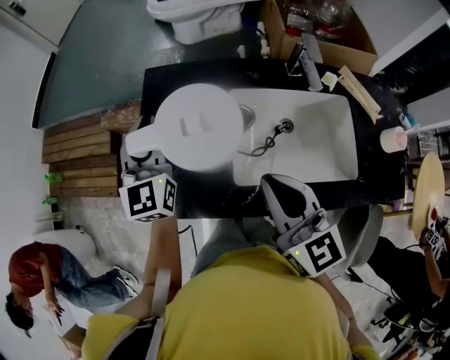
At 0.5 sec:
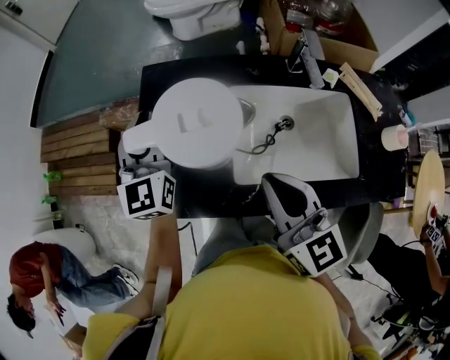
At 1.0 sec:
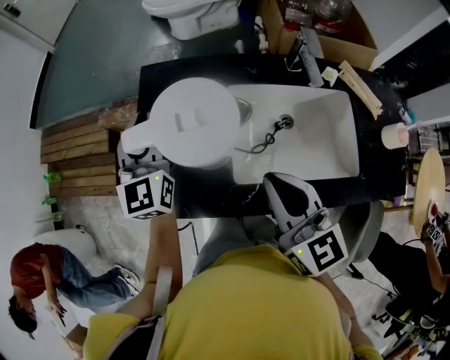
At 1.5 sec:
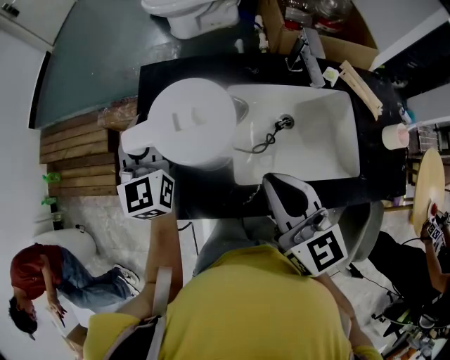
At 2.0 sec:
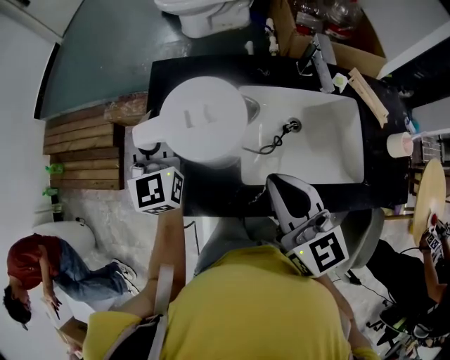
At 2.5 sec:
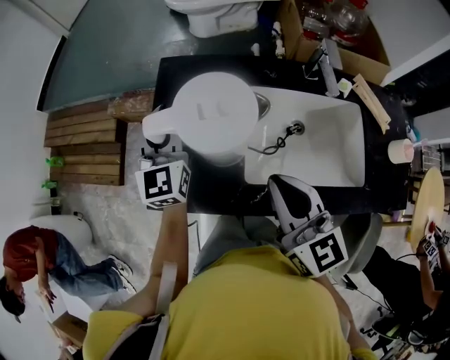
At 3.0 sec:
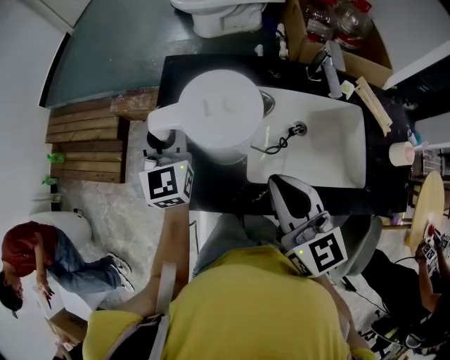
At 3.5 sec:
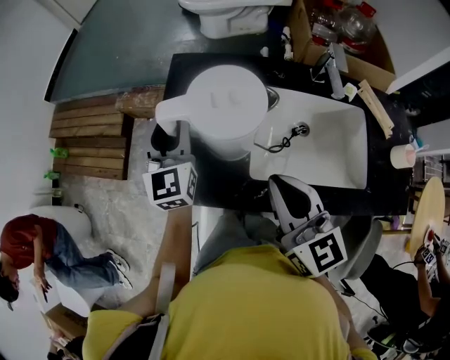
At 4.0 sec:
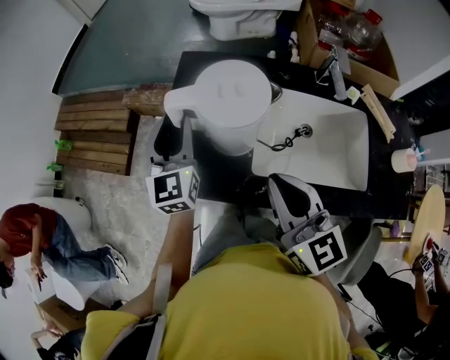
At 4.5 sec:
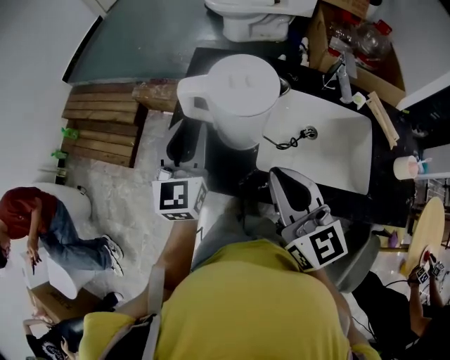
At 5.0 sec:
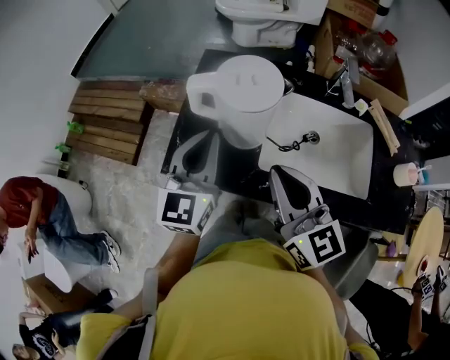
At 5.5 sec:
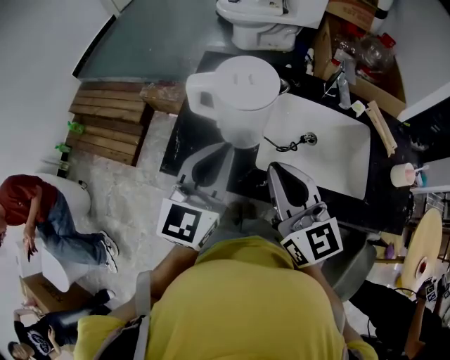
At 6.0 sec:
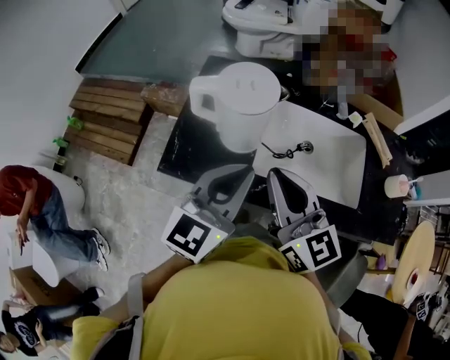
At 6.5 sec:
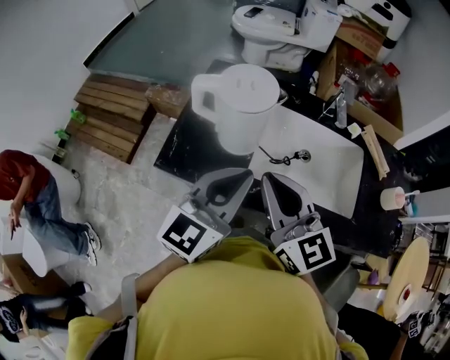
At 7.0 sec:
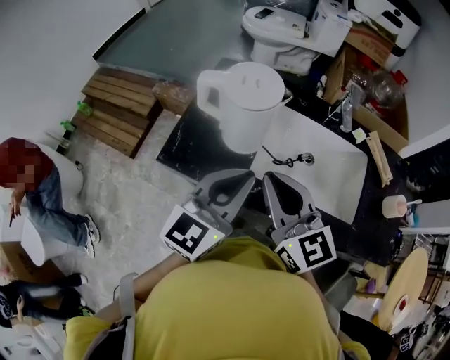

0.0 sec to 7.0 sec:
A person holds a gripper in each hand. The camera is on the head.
0.0 sec to 2.0 sec: The grippers make only small movements.
2.0 sec to 3.5 sec: The left gripper opens.
3.5 sec to 5.0 sec: The left gripper travels backward by roughly 15 cm, and closes.
5.0 sec to 7.0 sec: The left gripper moves to the right and backward, some 15 cm.

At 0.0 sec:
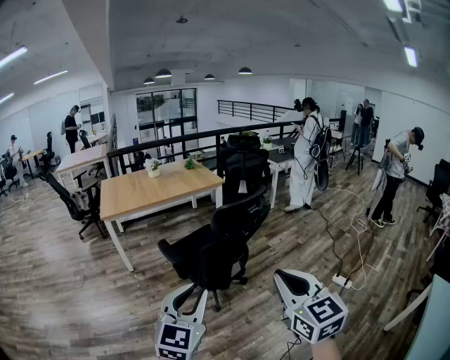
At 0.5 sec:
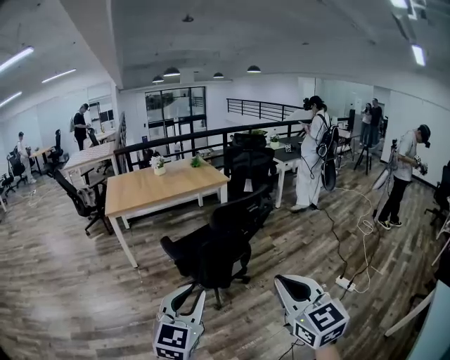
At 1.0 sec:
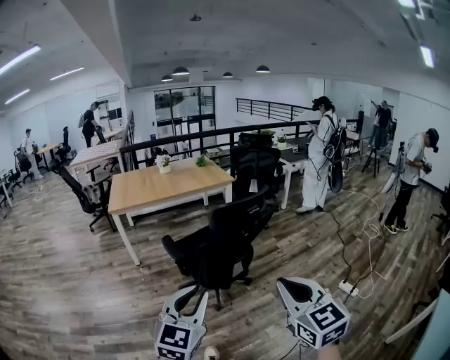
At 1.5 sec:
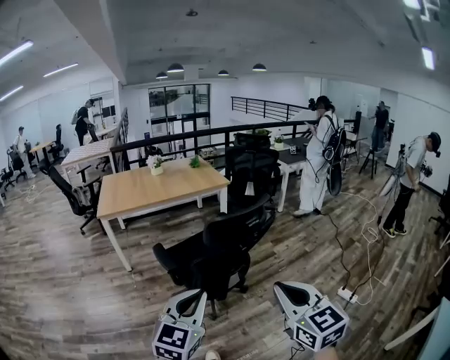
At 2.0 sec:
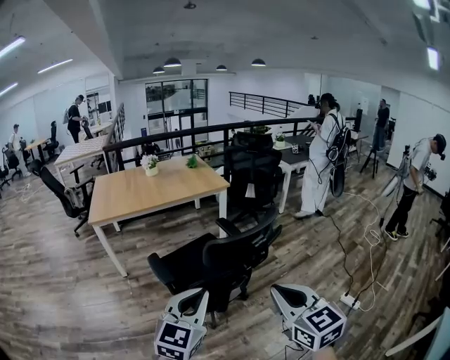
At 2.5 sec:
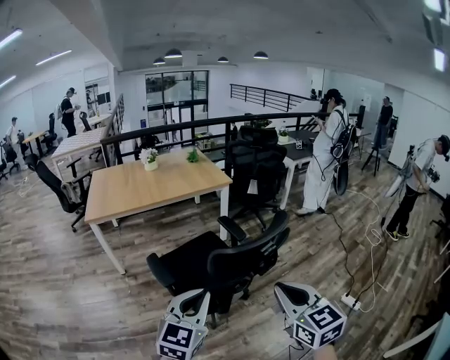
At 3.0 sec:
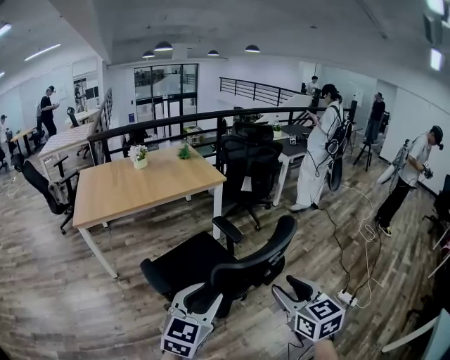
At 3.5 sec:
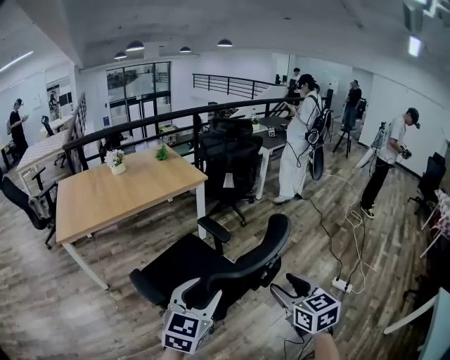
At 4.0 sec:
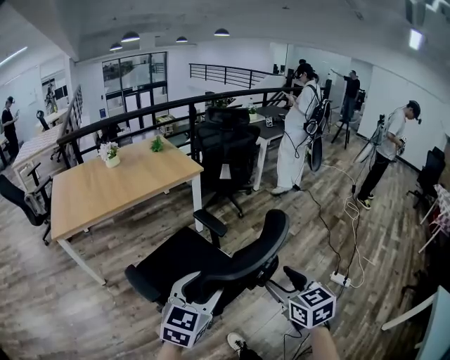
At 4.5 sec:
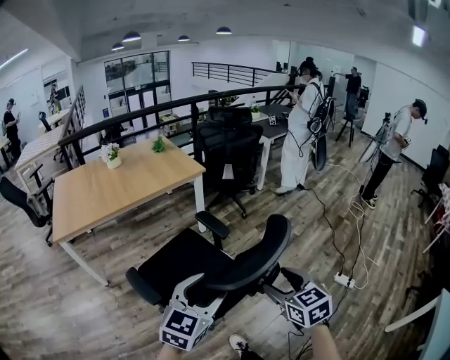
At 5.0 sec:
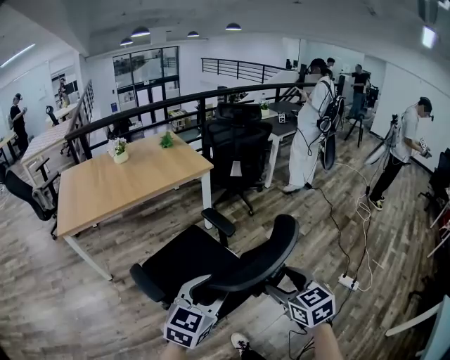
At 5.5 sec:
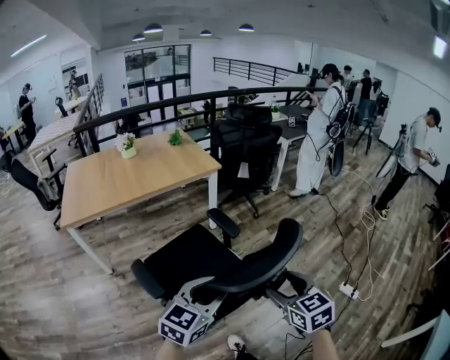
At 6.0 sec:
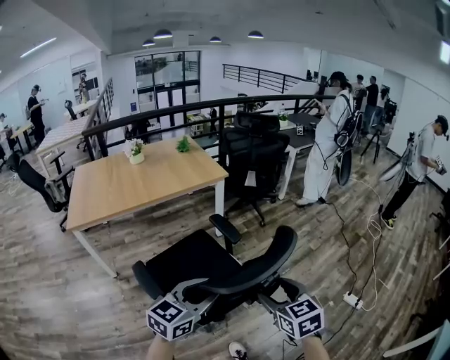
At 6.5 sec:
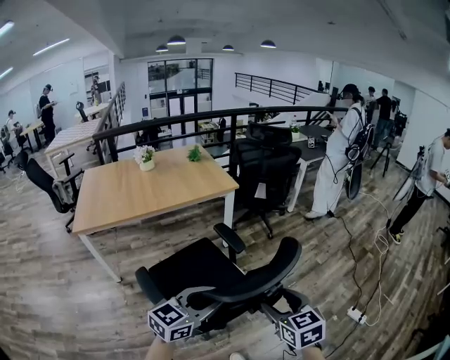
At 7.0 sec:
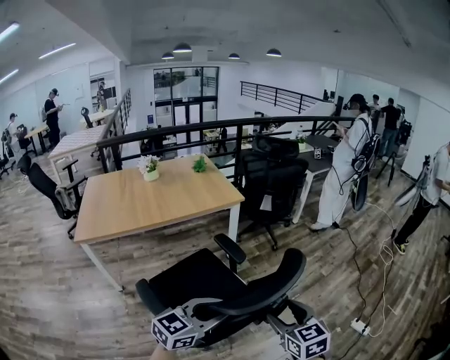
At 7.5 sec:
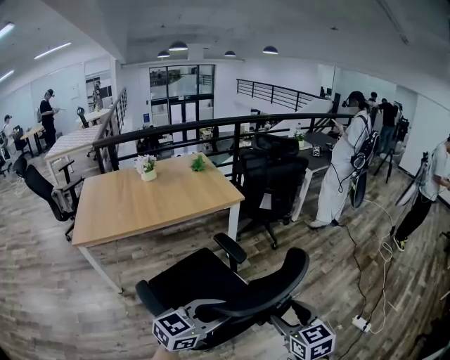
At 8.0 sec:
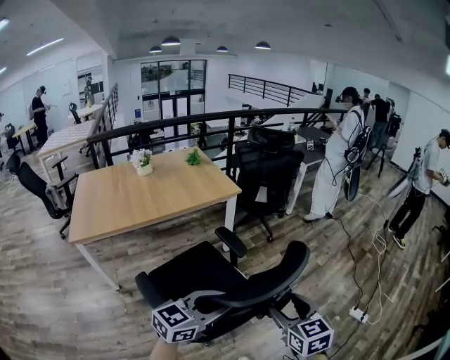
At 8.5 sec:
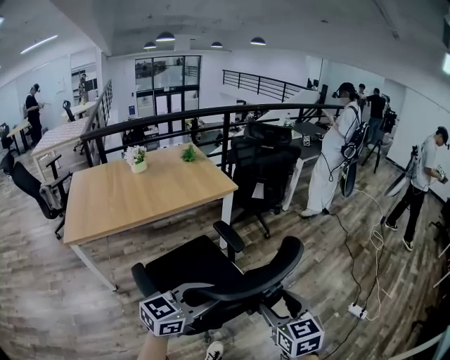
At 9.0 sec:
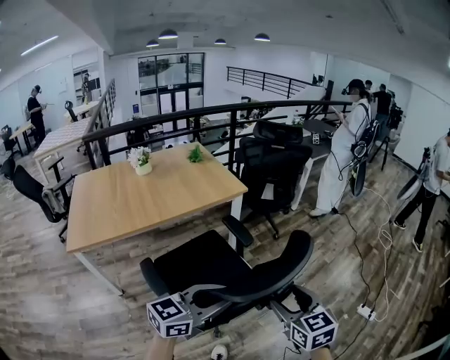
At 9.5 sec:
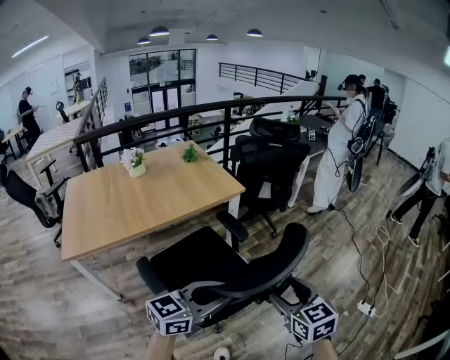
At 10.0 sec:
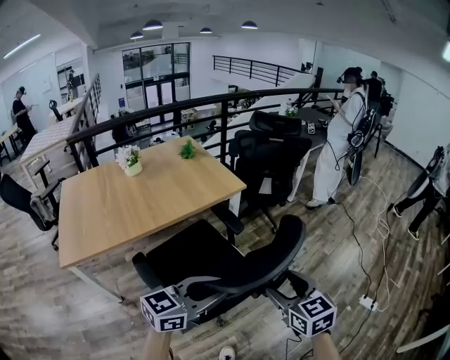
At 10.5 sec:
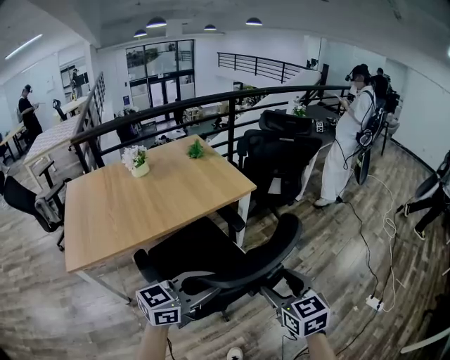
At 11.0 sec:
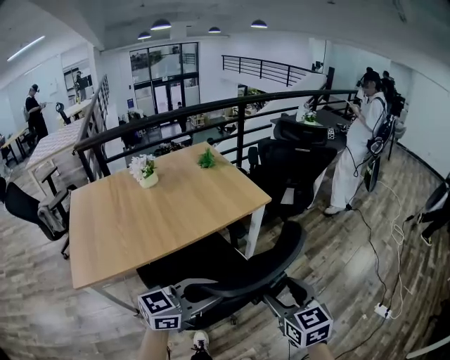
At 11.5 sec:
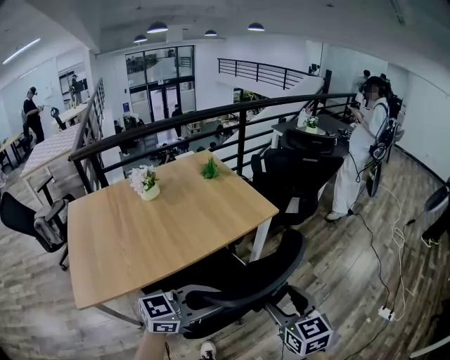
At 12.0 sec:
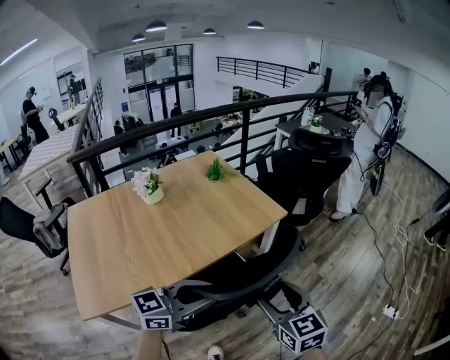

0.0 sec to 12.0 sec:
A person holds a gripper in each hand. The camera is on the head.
0.0 sec to 2.0 sec: The two grippers go about 20 cm forward.
2.0 sec to 4.0 sec: The left gripper goes about 20 cm forward, and opens its fingers. The right gripper shifts about 20 cm forward and downward, changes its angle by about 20 degrees, and opens.
4.0 sec to 6.0 sec: The right gripper is displaced forward by approximately 5 cm.
6.0 sec to 8.0 sec: The right gripper changes place by approximately 5 cm; the left gripper shifts by some 5 cm.
8.0 sec to 10.0 sec: Both grippers travel together to the left and forward, about 20 cm.
10.0 sec to 12.0 sec: The two grippers go approximately 25 cm to the left.

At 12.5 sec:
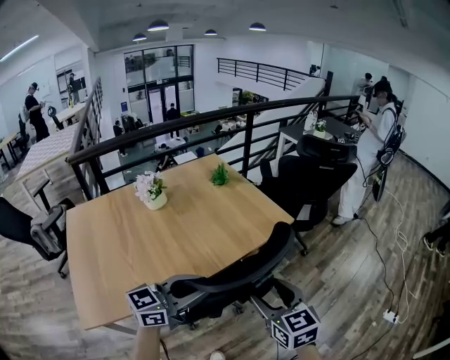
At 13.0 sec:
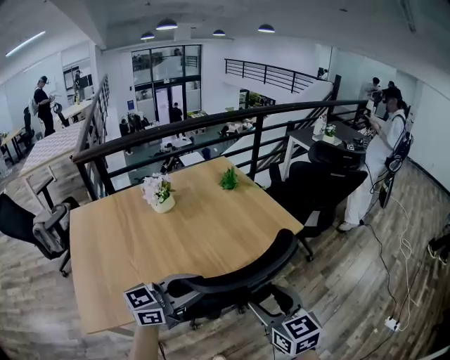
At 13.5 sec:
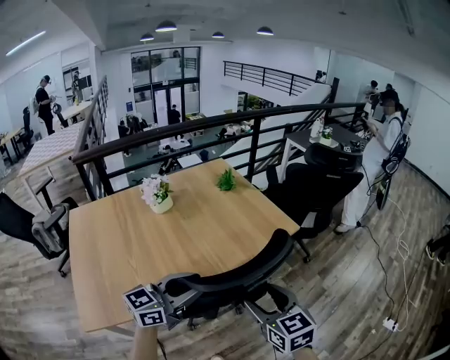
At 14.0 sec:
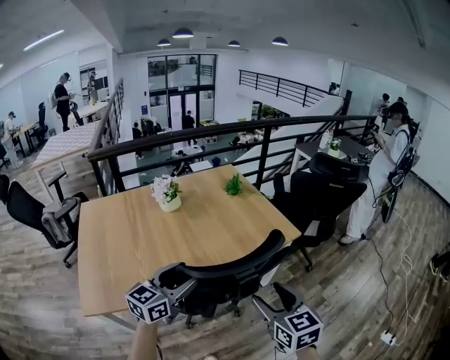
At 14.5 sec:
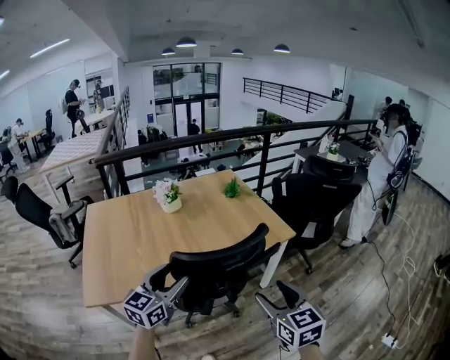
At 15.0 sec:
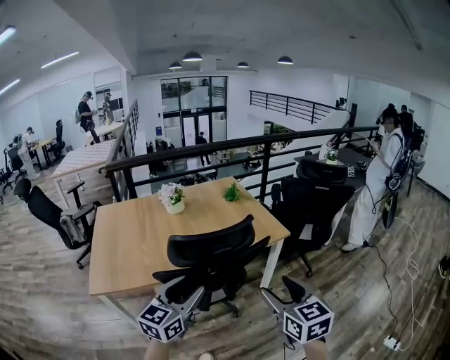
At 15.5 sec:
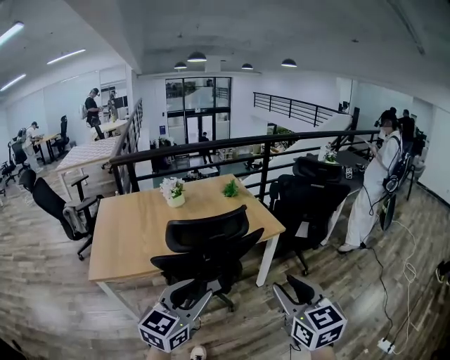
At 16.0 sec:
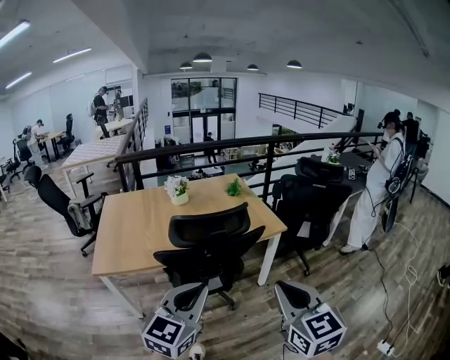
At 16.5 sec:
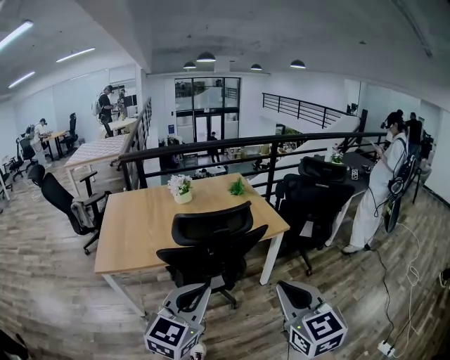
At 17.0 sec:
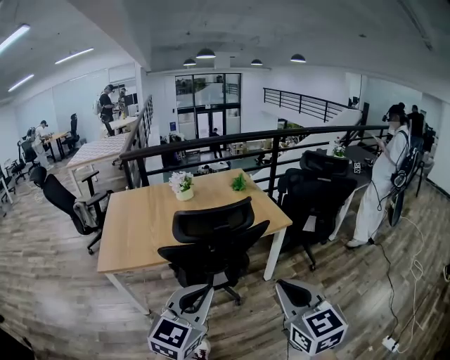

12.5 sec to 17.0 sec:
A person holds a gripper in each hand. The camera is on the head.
12.5 sec to 14.5 sec: The right gripper is displaced to the right by roughly 5 cm, while the left gripper shifts about 5 cm to the left, turns by some 40 degrees, and opens its fingers.
14.5 sec to 17.0 sec: The left gripper is displaced backward and to the right by about 30 cm, and closes its fingers. Meanwhile the right gripper goes some 20 cm backward, upward and to the right, and closes up.

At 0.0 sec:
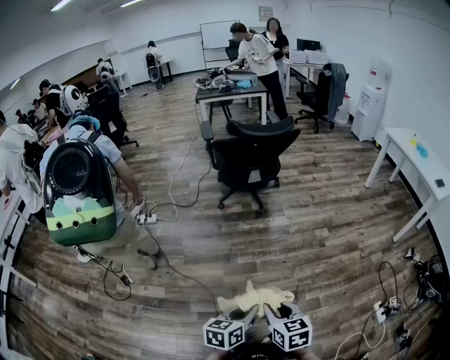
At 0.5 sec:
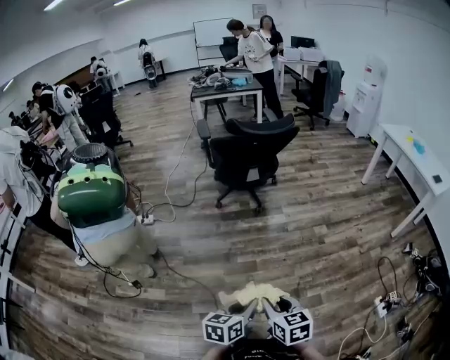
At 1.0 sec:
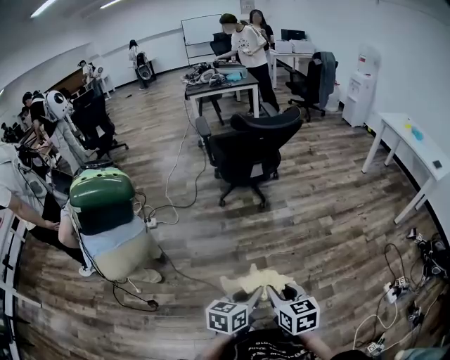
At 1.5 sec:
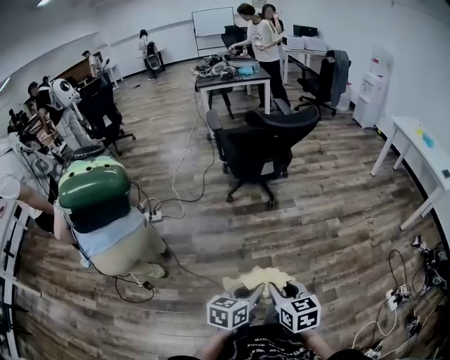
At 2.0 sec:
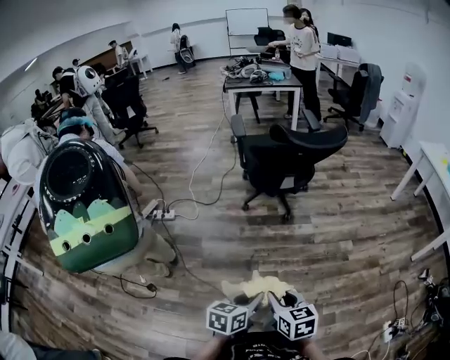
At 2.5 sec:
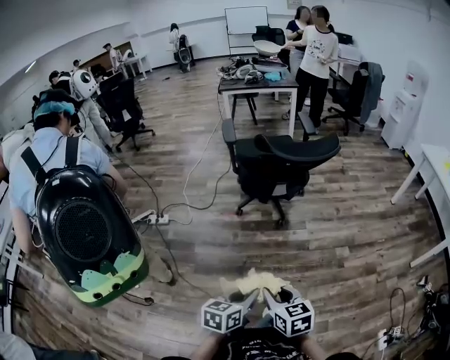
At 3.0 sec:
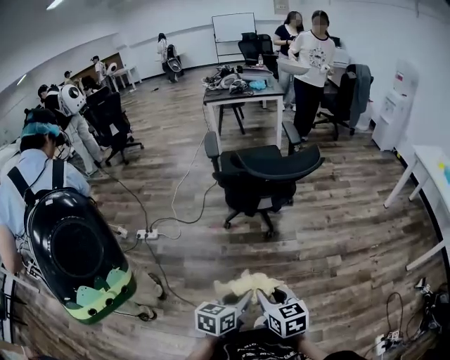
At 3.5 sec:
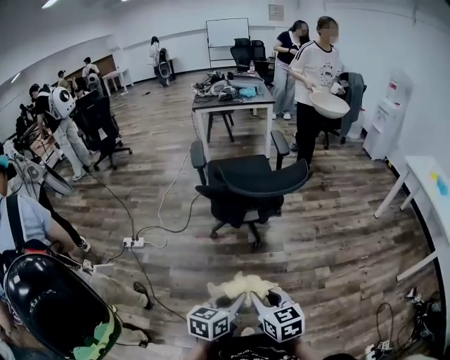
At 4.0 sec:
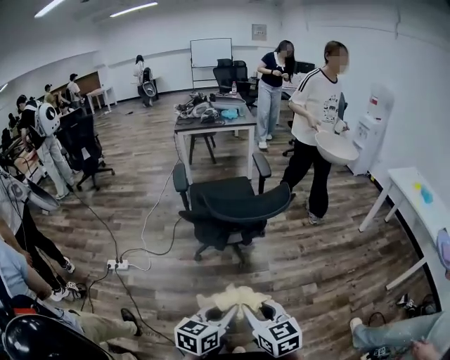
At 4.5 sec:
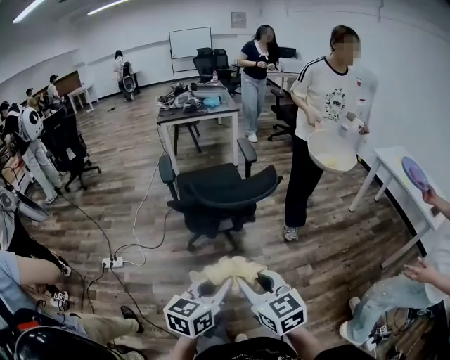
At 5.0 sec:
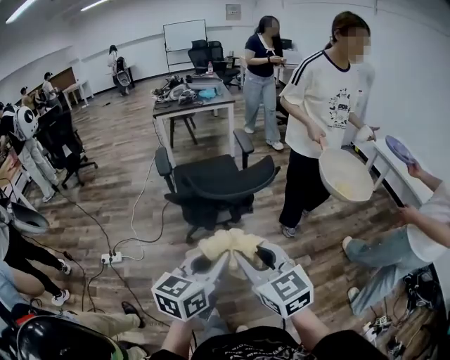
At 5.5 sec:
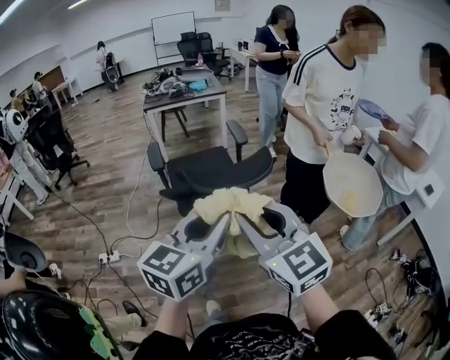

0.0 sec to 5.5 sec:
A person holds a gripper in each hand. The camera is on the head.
0.0 sec to 2.0 sec: Both grippers move forward and to the left, some 20 cm.
2.0 sec to 3.5 sec: The two grippers go about 25 cm forward and to the right.
3.5 sec to 5.5 sec: The left gripper heads upward and forward, covering roughly 30 cm, and rotates about 30 degrees. The right gripper moves upward, about 25 cm, and rotates approximately 40 degrees.
